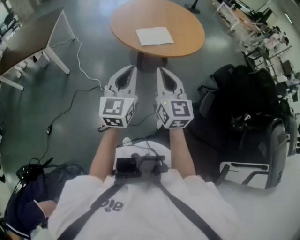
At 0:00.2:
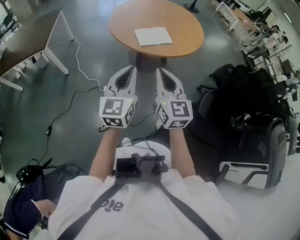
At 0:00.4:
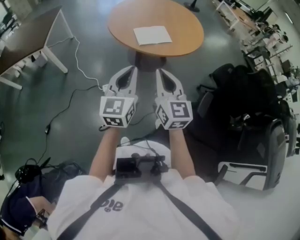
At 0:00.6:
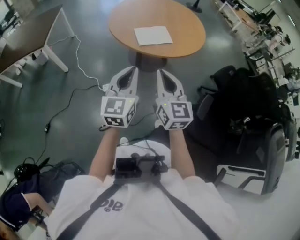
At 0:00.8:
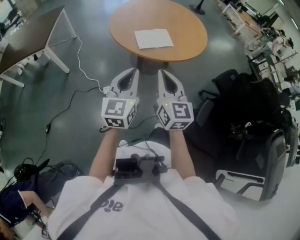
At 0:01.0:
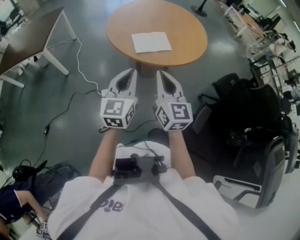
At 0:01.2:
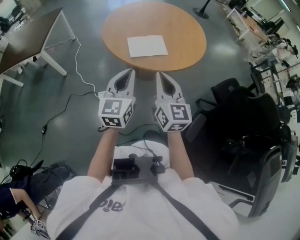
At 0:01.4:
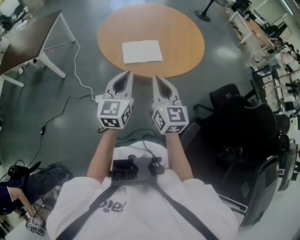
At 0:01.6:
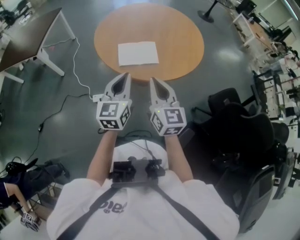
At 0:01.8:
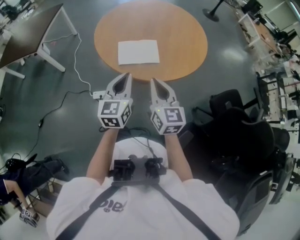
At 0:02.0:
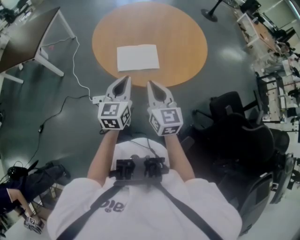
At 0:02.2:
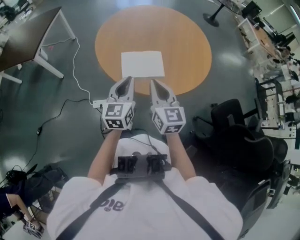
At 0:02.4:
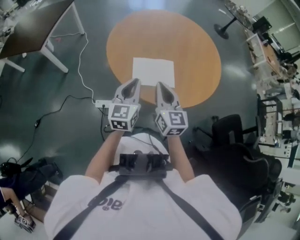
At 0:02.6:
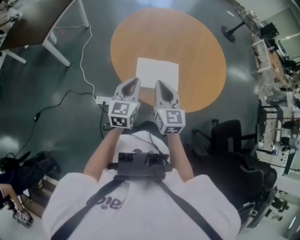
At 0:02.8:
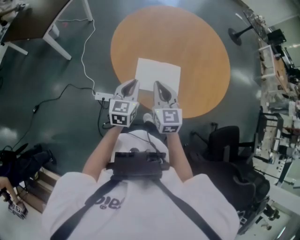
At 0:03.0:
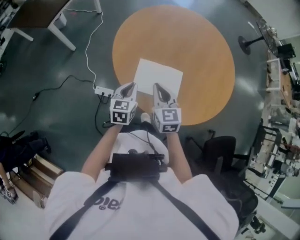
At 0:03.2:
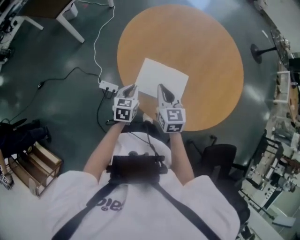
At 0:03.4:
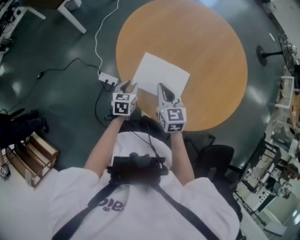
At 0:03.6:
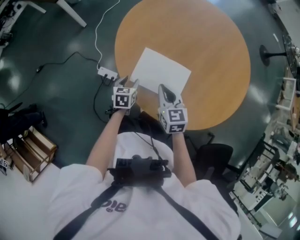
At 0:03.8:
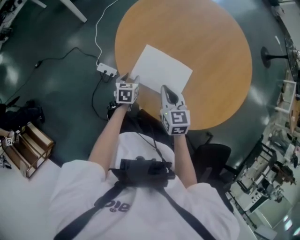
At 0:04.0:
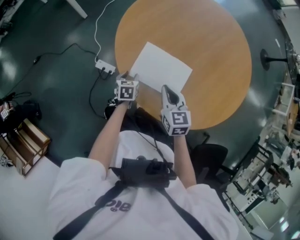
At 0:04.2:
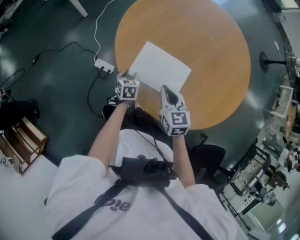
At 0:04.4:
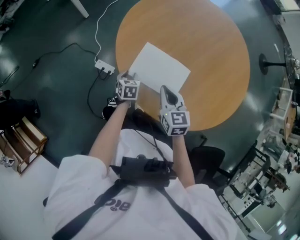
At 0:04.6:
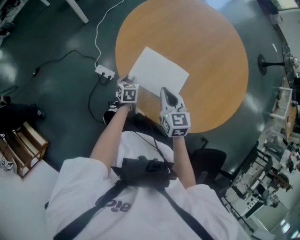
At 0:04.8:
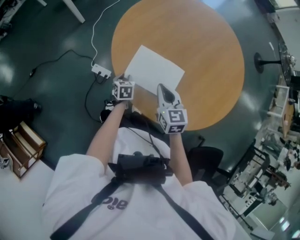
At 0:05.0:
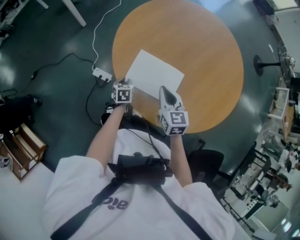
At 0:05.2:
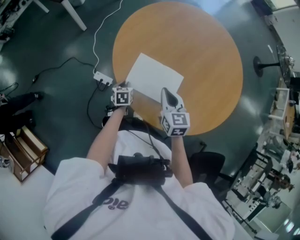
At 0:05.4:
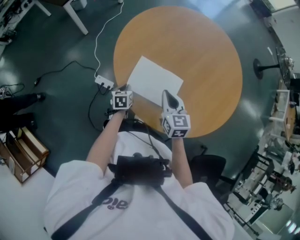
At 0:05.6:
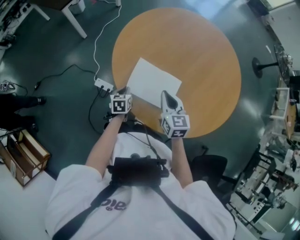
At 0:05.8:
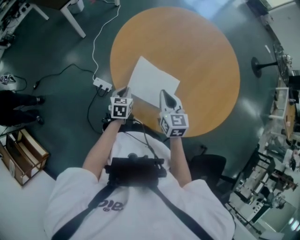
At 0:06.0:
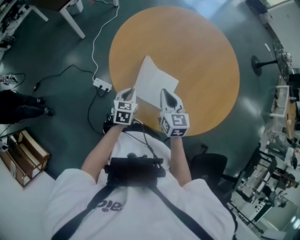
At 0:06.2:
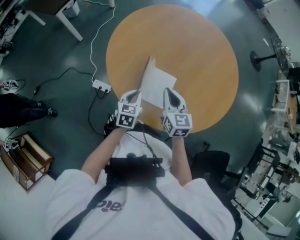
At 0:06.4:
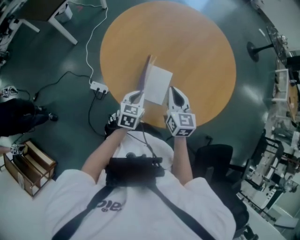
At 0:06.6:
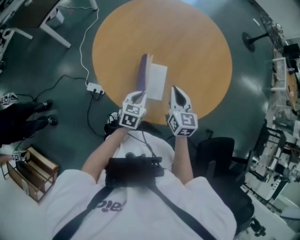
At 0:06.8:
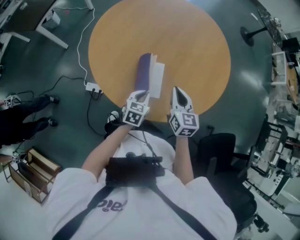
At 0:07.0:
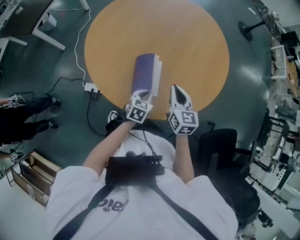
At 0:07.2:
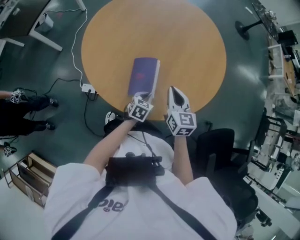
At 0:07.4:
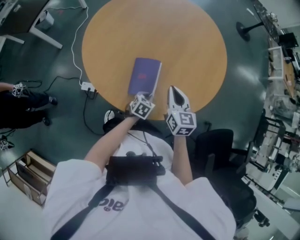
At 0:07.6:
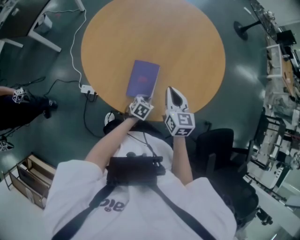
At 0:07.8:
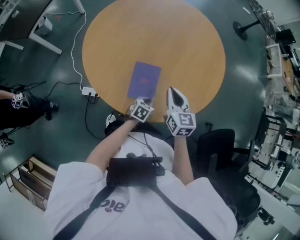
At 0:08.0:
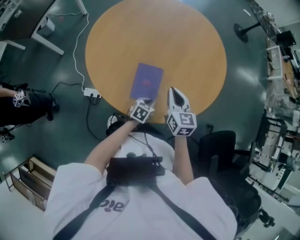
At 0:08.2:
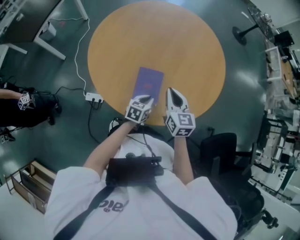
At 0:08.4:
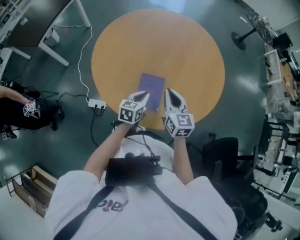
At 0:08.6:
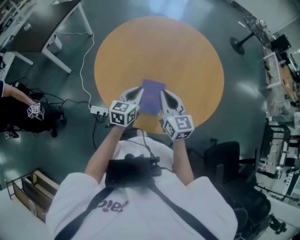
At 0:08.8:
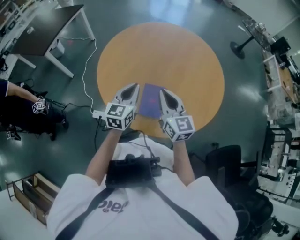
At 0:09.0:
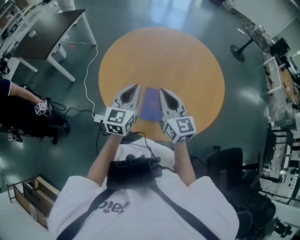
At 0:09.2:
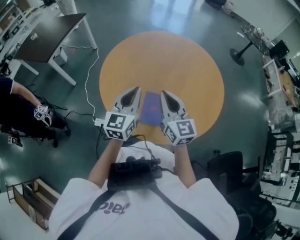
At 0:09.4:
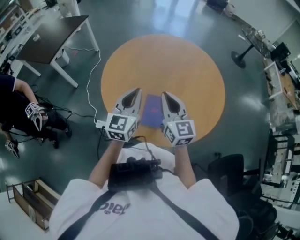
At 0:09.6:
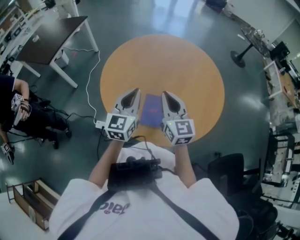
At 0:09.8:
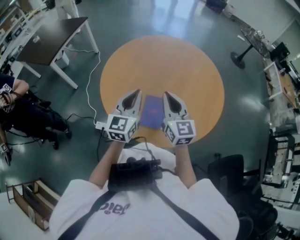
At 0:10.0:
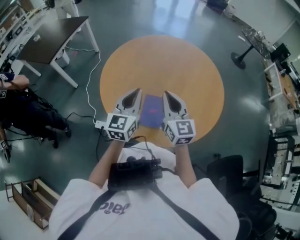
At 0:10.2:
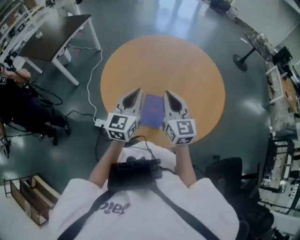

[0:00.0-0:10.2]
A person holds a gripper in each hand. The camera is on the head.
0:00.0 to 0:01.4: Both grippers travel together forward and to the right, roughly 20 cm.
0:01.4 to 0:03.0: The two grippers go roughly 30 cm forward and downward. The left gripper rotates some 30 degrees. The right gripper rotates about 30 degrees.
0:03.0 to 0:04.4: The left gripper travels downward by approximately 20 cm, turns by roughly 30 degrees, and opens; the right gripper shifts about 5 cm downward.
0:04.4 to 0:05.8: The left gripper goes roughly 5 cm upward, and closes.
0:05.8 to 0:07.2: The right gripper moves about 15 cm, and changes its angle by roughly 20 degrees; the left gripper shifts by roughly 25 cm, and swivels approximately 40 degrees.
0:07.2 to 0:08.8: The left gripper moves upward and to the left, roughly 30 cm, and tips its fingers upward by some 40 degrees. The right gripper is displaced upward and to the left by approximately 15 cm, and rotates approximately 20 degrees.
0:08.8 to 0:10.2: The left gripper shifts about 5 cm upward.

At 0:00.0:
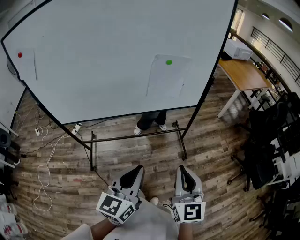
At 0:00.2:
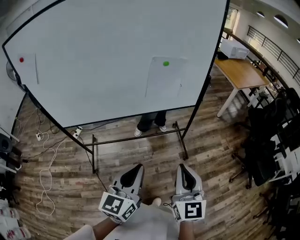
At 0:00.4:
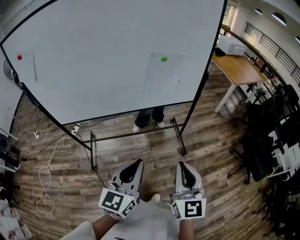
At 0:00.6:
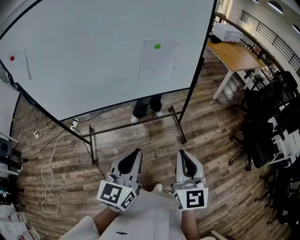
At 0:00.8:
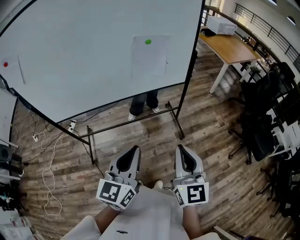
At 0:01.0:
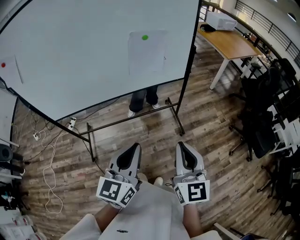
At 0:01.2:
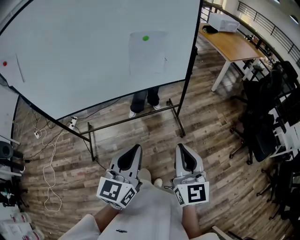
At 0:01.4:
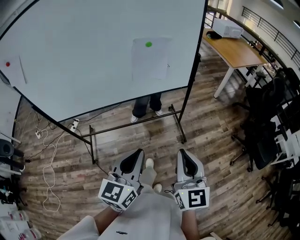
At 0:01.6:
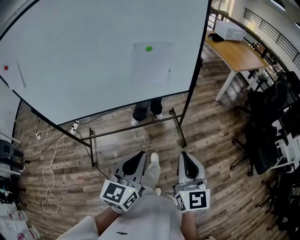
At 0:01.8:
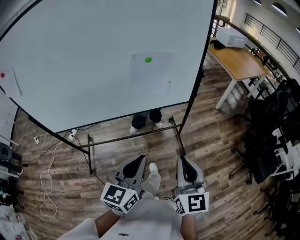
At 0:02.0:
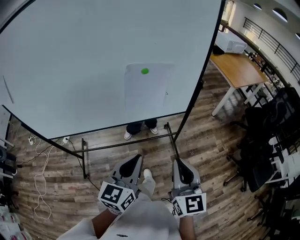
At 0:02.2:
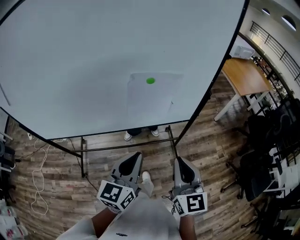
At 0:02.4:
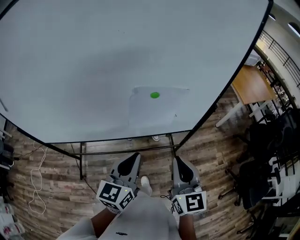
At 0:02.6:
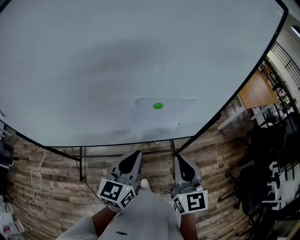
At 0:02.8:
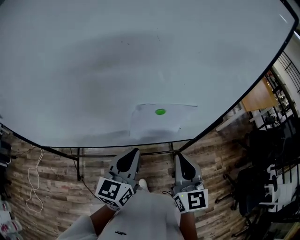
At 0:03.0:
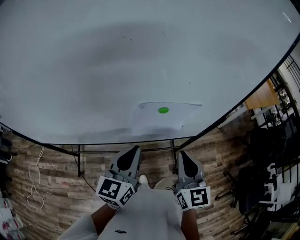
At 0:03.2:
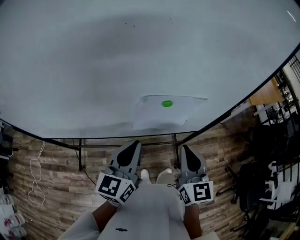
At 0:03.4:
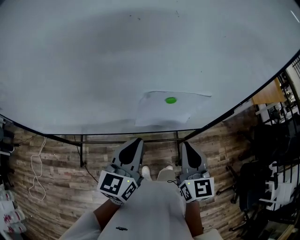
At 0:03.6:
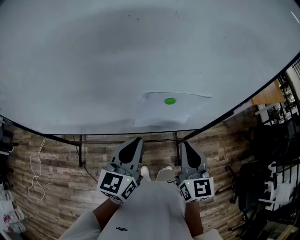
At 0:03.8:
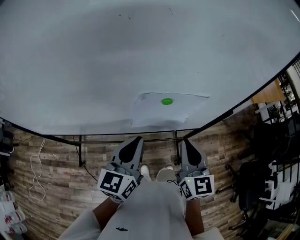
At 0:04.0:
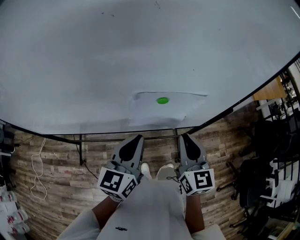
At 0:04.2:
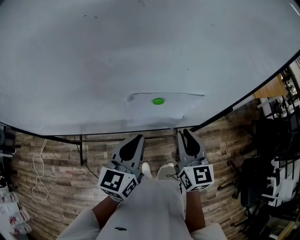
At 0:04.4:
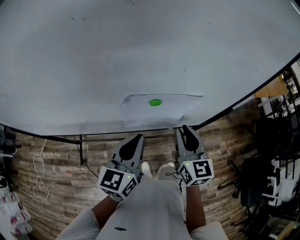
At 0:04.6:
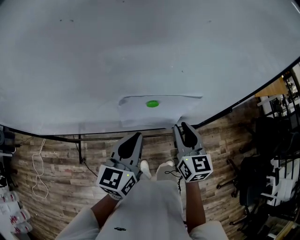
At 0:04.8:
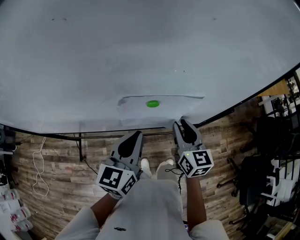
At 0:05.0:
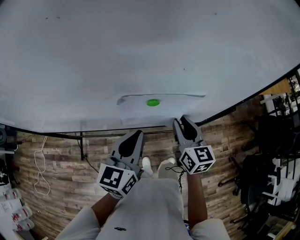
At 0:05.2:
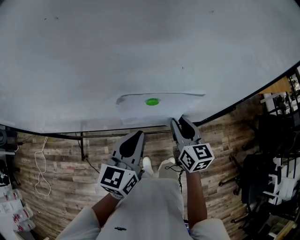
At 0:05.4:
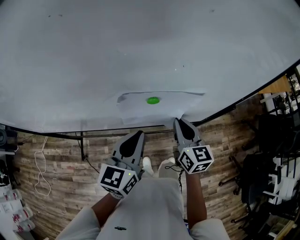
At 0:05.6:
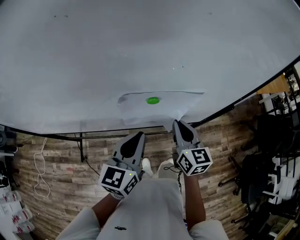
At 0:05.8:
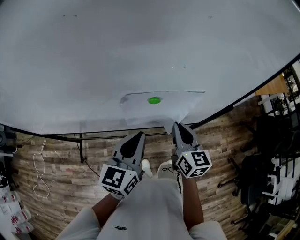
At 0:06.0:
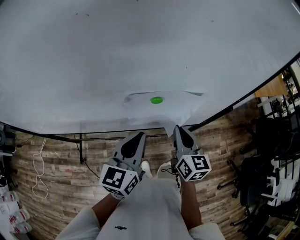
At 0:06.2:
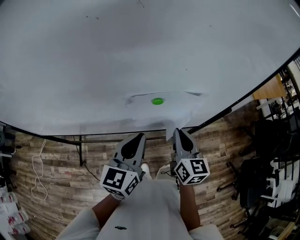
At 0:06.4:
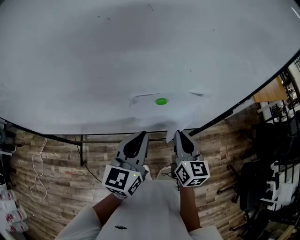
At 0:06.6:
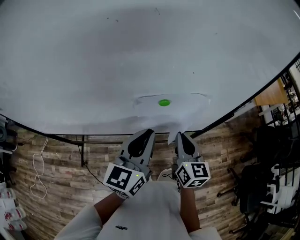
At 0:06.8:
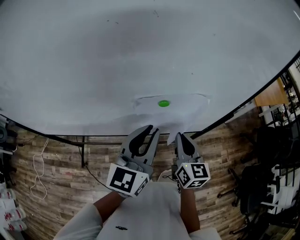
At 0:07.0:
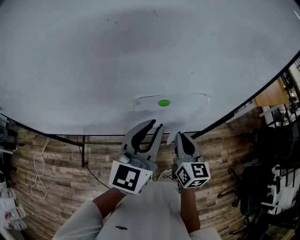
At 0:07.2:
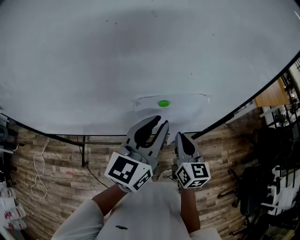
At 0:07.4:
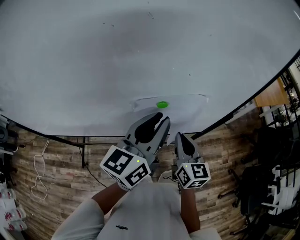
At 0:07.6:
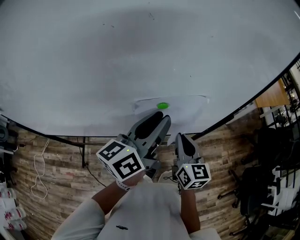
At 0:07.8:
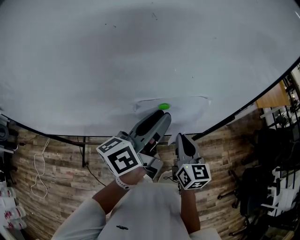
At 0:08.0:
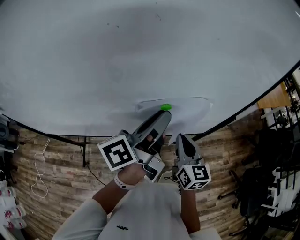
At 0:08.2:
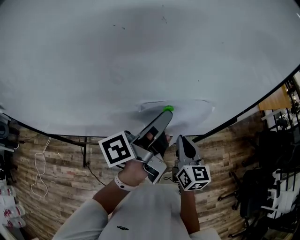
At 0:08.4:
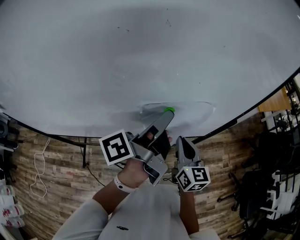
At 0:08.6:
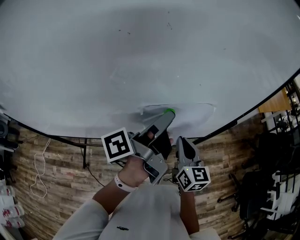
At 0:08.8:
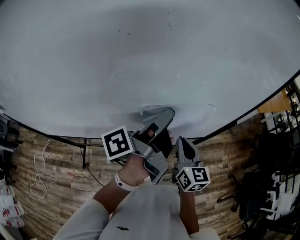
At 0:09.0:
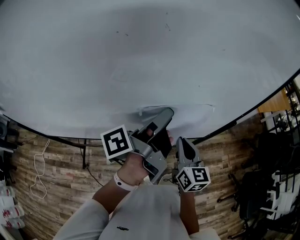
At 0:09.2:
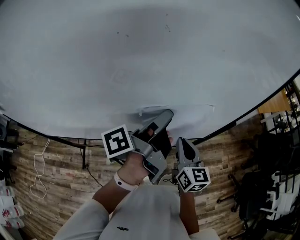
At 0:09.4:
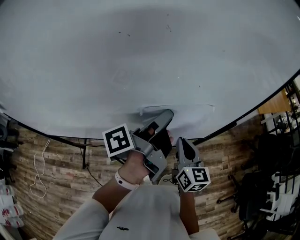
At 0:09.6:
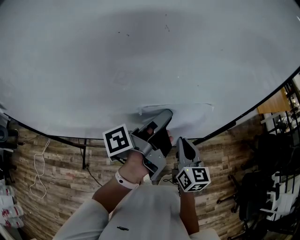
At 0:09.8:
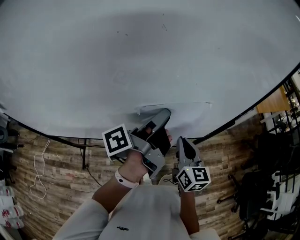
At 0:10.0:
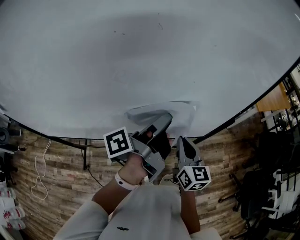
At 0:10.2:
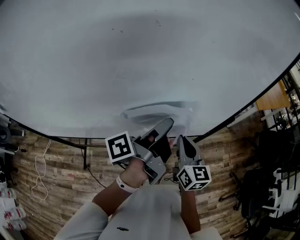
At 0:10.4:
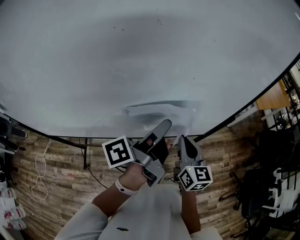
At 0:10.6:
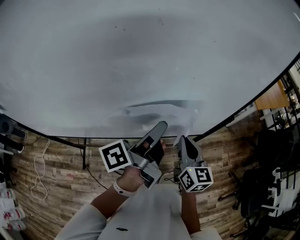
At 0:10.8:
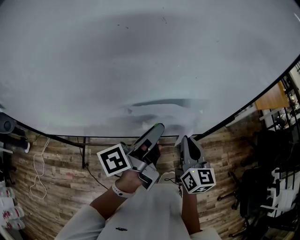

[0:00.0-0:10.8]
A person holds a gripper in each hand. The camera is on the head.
0:00.0 to 0:01.6: The grippers both shift to the right by some 5 cm.
0:01.6 to 0:03.0: Both grippers travel together forward, some 35 cm.
0:03.0 to 0:04.6: The left gripper ends up approximately 5 cm from where it was. Meanwhile the right gripper shifts some 10 cm forward and downward, and opens up.
0:04.6 to 0:06.2: The right gripper closes.
0:06.2 to 0:07.8: The left gripper moves upward and forward, roughly 10 cm, turns by approximately 40 degrees, and opens up.
0:07.8 to 0:09.2: The left gripper turns by roughly 40 degrees.
0:09.2 to 0:10.8: The grippers move only a little.

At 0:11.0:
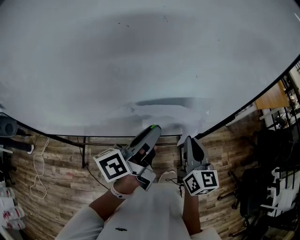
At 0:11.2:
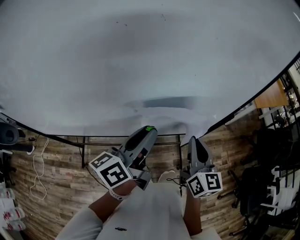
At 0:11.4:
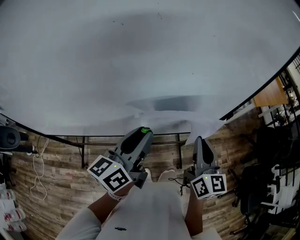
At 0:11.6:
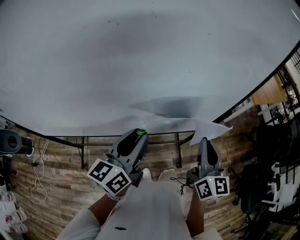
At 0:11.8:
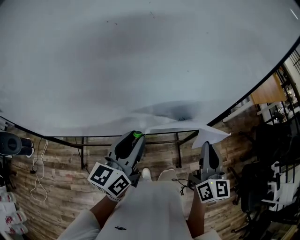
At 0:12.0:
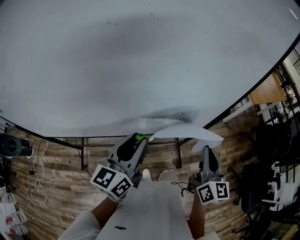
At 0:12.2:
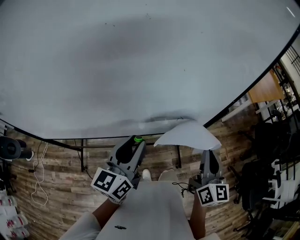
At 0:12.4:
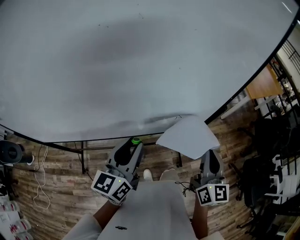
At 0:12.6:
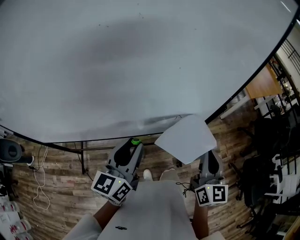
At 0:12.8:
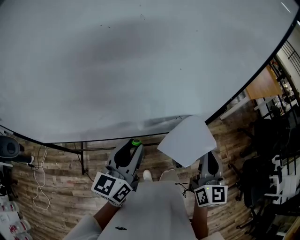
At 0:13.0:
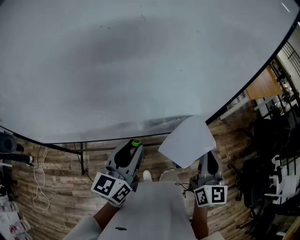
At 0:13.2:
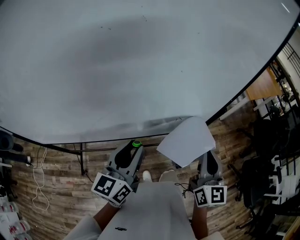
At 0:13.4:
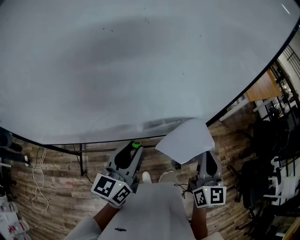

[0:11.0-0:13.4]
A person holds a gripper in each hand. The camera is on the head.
0:11.0 to 0:12.2: The left gripper shifts by approximately 5 cm, and twists about 40 degrees clockwise, seen from behind. The right gripper is displaced to the right by some 10 cm.
0:12.2 to 0:13.4: There are only small adjustments of the grippers.
